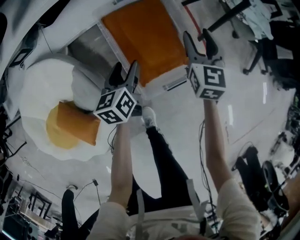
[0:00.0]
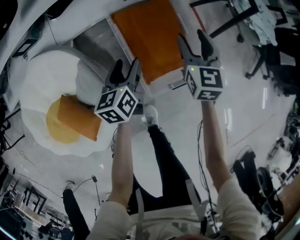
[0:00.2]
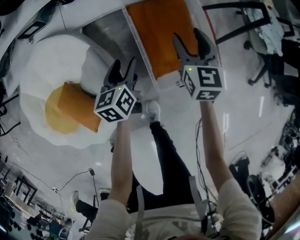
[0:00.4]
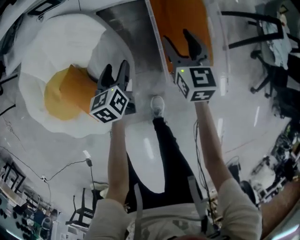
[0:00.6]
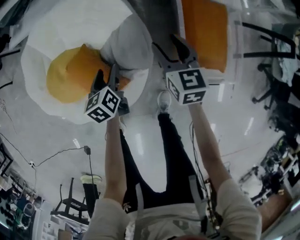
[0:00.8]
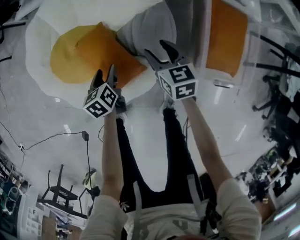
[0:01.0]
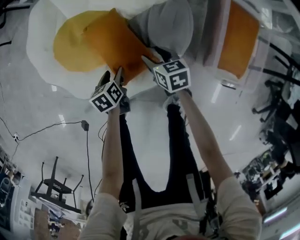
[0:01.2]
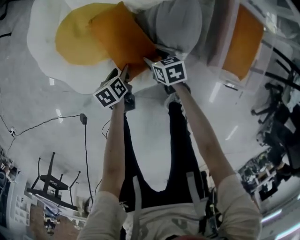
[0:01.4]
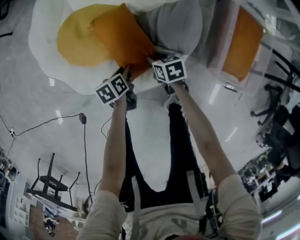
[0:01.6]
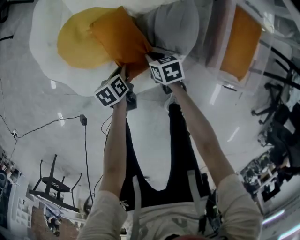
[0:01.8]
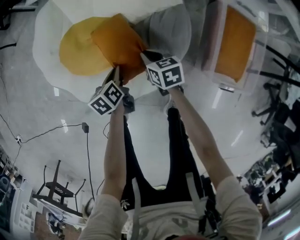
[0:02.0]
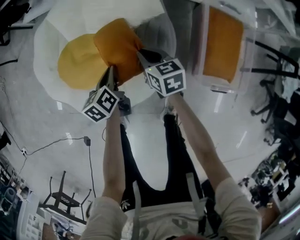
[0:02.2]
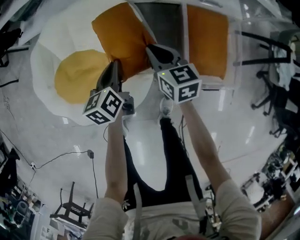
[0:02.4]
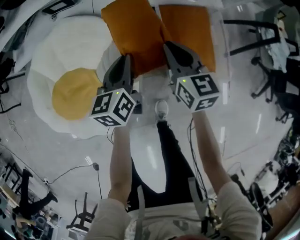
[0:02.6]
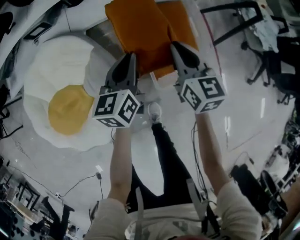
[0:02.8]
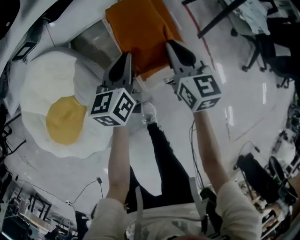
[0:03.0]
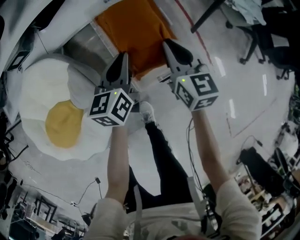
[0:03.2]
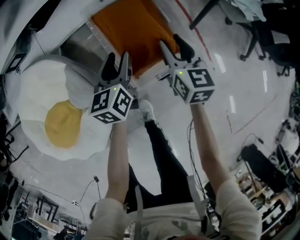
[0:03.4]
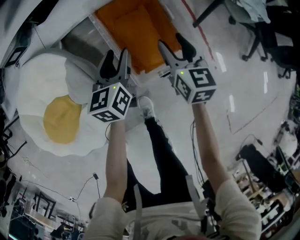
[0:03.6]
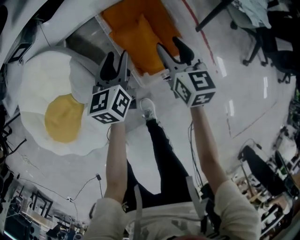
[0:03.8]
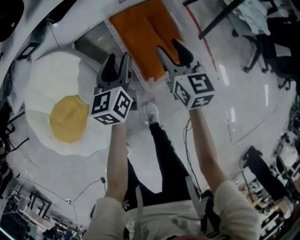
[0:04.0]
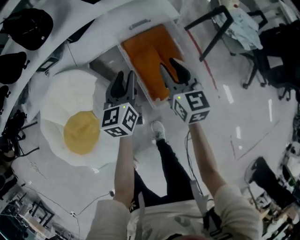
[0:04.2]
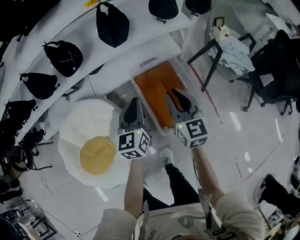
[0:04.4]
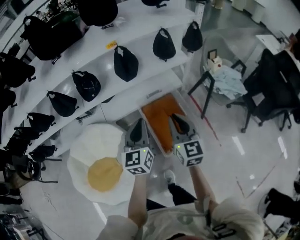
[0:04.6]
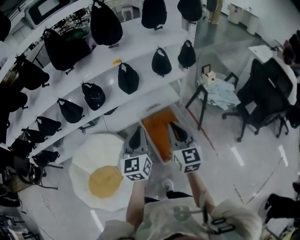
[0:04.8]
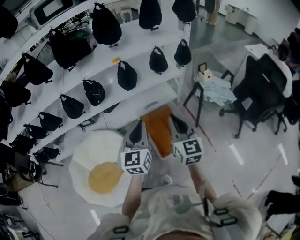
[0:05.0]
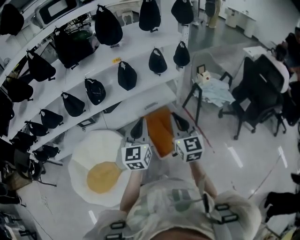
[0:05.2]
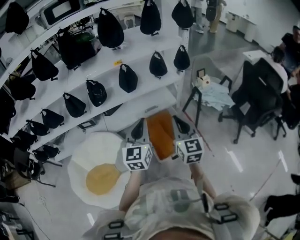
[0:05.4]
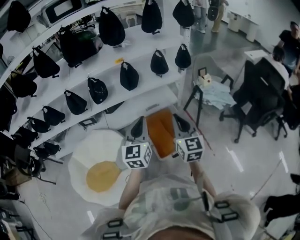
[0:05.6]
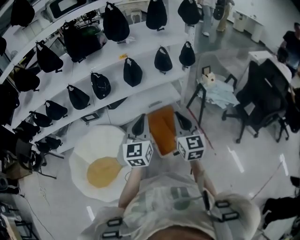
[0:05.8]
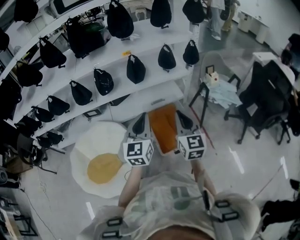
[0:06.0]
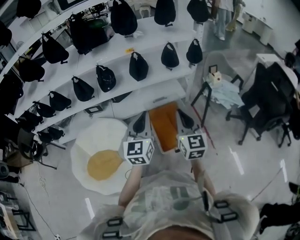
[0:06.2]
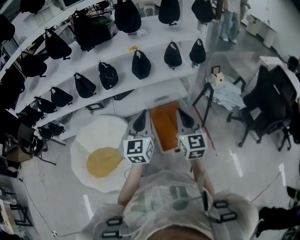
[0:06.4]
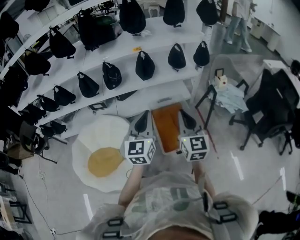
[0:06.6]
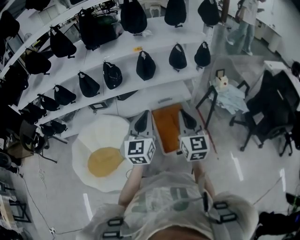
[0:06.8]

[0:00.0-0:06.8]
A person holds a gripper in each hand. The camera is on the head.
0:00.0 to 0:01.4: The pair of grippers is taken roughly 60 cm. The right gripper angles its fingers downward, by roughly 30 degrees; the left gripper changes its angle by about 50 degrees.
0:01.4 to 0:02.8: Both grippers are carried roughly 50 cm. The right gripper points its fingers roughly 40 degrees further upward, and closes its fingers; the left gripper tilts its fingers some 40 degrees upward, and closes its fingers.
0:02.8 to 0:04.0: The two grippers go roughly 5 cm to the right. The right gripper opens. Meanwhile the left gripper opens.
0:04.0 to 0:05.4: The right gripper travels upward and backward by about 40 cm, rotates about 30 degrees, and closes up, while the left gripper goes about 40 cm upward, turns by about 30 degrees, and closes up.
0:05.4 to 0:06.8: There are only small adjustments of the grippers.

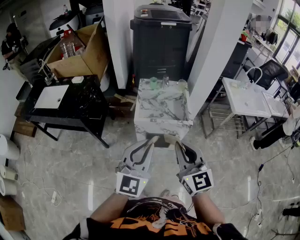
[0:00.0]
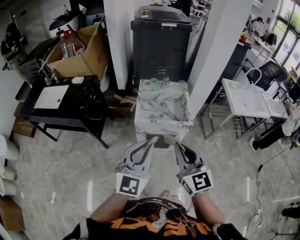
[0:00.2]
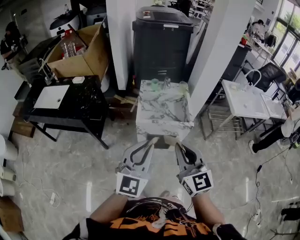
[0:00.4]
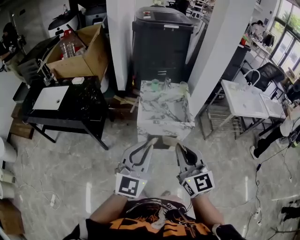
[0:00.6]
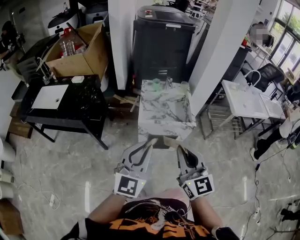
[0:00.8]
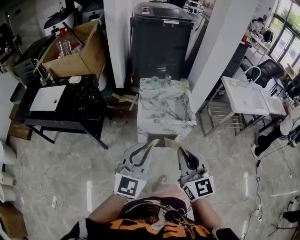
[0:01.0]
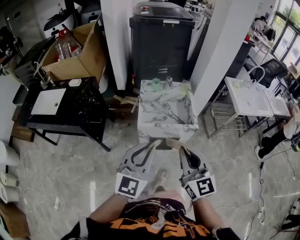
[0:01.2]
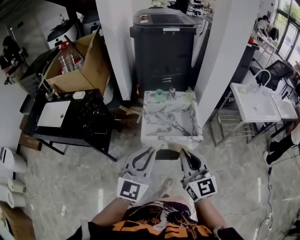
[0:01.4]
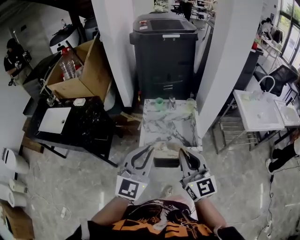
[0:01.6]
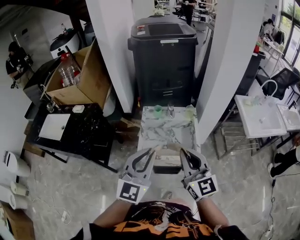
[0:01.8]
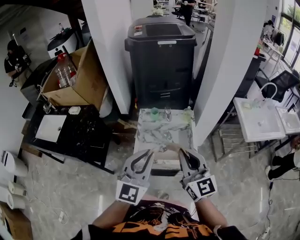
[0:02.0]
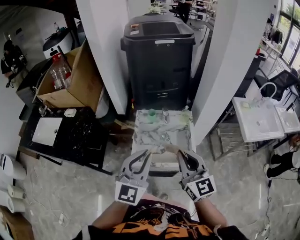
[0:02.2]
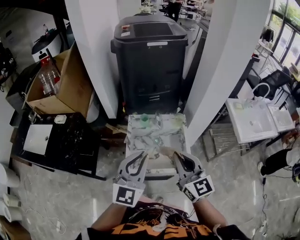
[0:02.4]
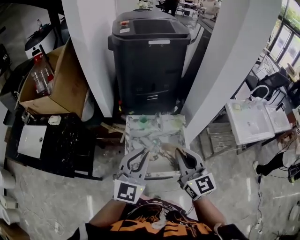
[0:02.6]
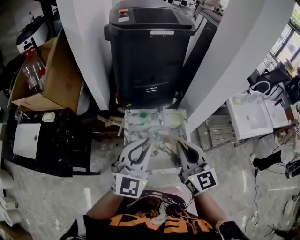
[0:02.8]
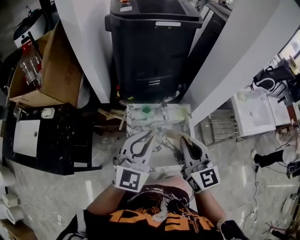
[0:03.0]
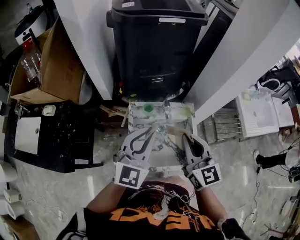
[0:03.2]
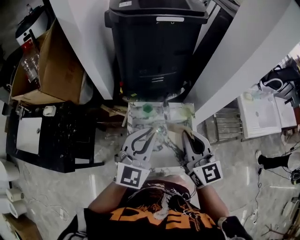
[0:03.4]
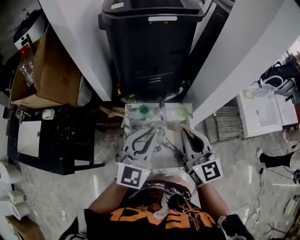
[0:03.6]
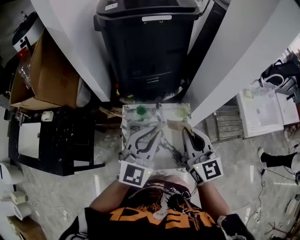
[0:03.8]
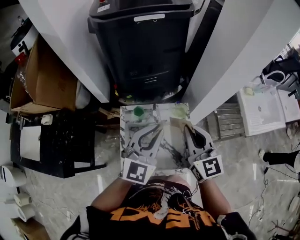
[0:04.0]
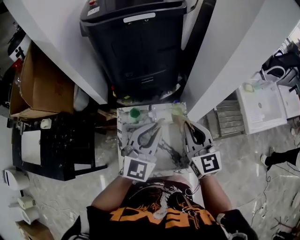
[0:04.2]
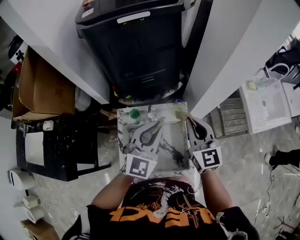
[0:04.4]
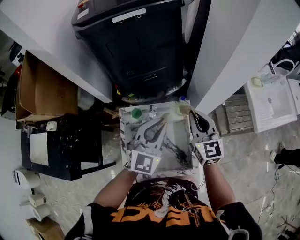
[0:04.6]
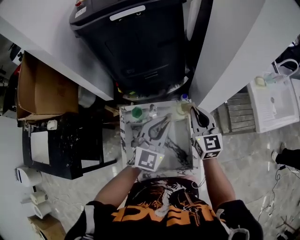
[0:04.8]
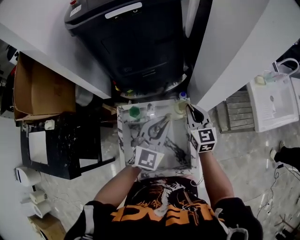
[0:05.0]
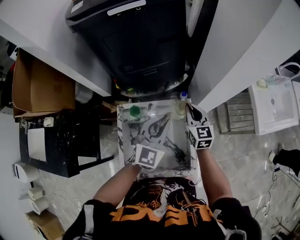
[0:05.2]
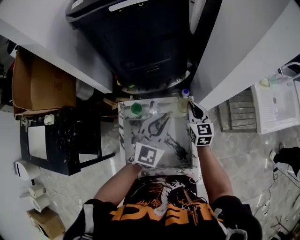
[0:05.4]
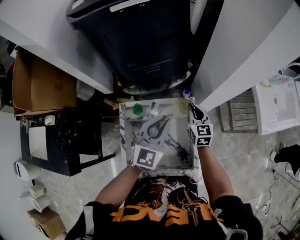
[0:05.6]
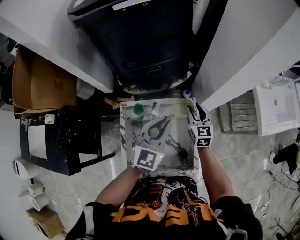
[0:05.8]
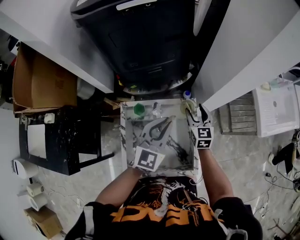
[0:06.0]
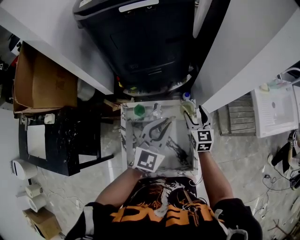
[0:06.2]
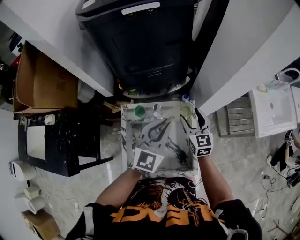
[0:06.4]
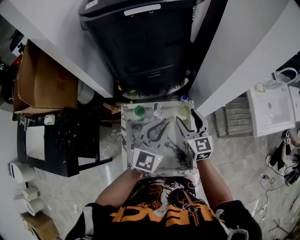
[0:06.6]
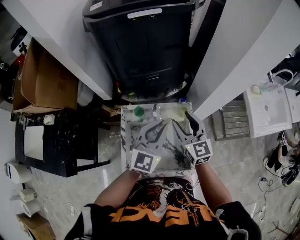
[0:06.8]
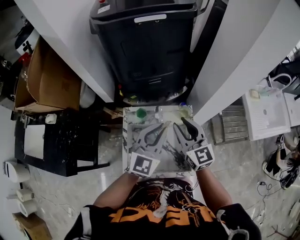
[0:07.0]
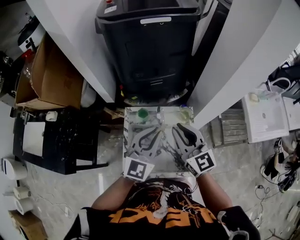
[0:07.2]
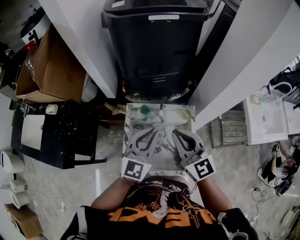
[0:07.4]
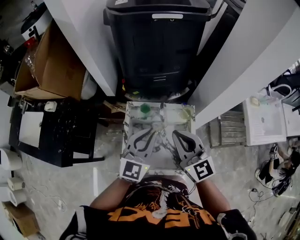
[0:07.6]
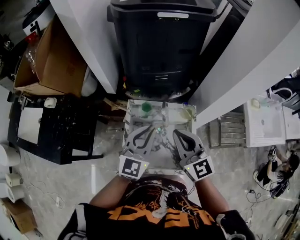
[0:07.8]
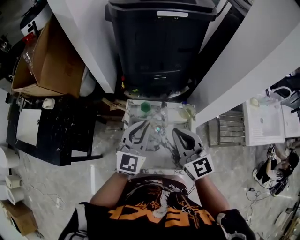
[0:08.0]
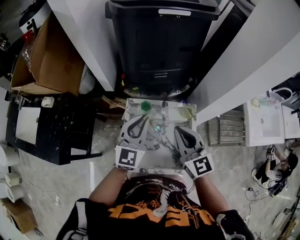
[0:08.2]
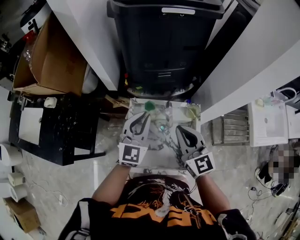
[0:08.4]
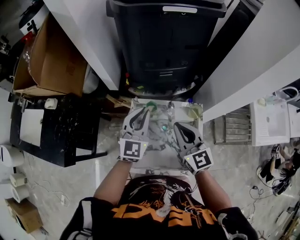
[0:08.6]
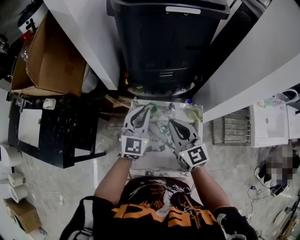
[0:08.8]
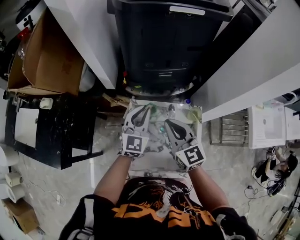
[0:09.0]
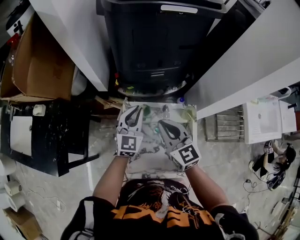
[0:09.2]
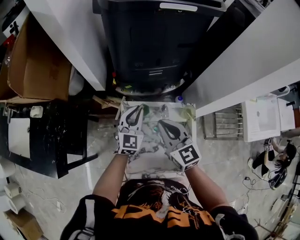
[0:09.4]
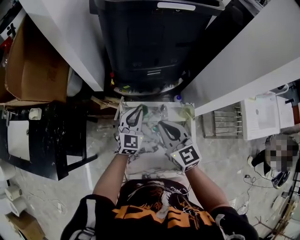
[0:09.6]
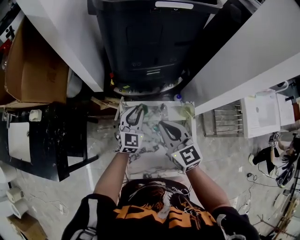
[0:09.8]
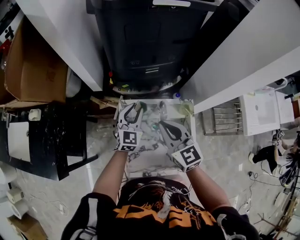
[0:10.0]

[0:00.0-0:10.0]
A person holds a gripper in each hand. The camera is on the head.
0:00.0 to 0:01.4: The two grippers go some 10 cm forward.
0:01.4 to 0:02.8: Both grippers travel together forward, about 30 cm.
0:02.8 to 0:04.2: The right gripper goes roughly 20 cm forward and to the right; the left gripper is displaced forward, to the right and downward by about 20 cm.
0:04.2 to 0:05.8: The left gripper moves downward and forward, approximately 10 cm; the right gripper moves downward and forward, about 25 cm, turns by about 20 degrees, and opens its fingers.
0:05.8 to 0:07.2: The left gripper shifts some 15 cm backward, upward and to the left; the right gripper heads upward, backward and to the left, covering approximately 30 cm, changes its angle by about 30 degrees, and opens, then closes once more.
0:07.2 to 0:08.6: The right gripper travels downward by roughly 5 cm. Meanwhile the left gripper moves forward, to the left and downward, about 15 cm.
0:08.6 to 0:10.0: The right gripper moves roughly 5 cm, while the left gripper moves downward and forward, some 15 cm.

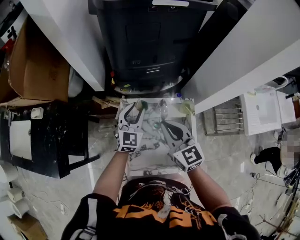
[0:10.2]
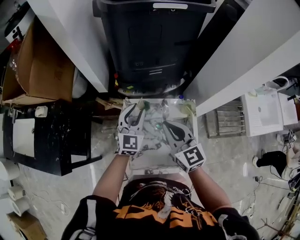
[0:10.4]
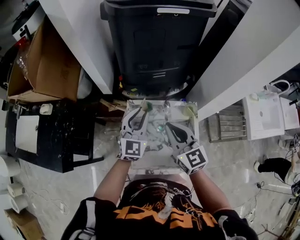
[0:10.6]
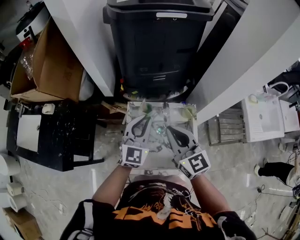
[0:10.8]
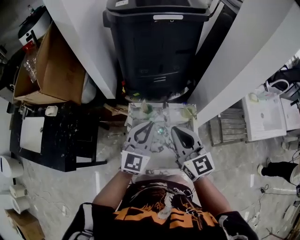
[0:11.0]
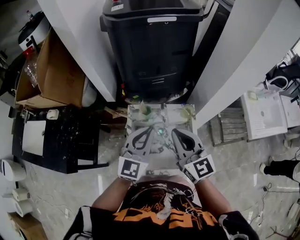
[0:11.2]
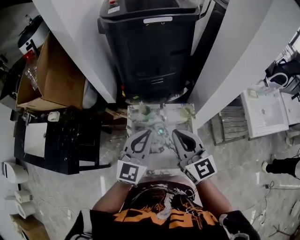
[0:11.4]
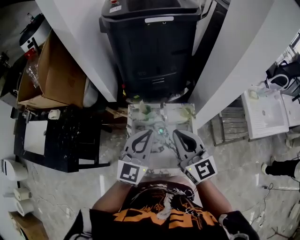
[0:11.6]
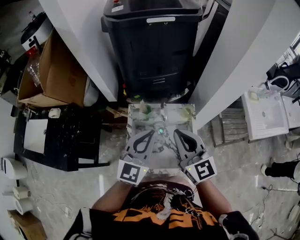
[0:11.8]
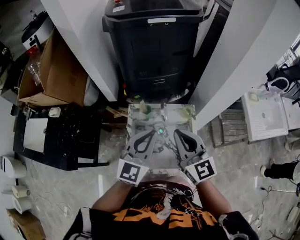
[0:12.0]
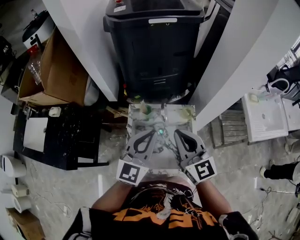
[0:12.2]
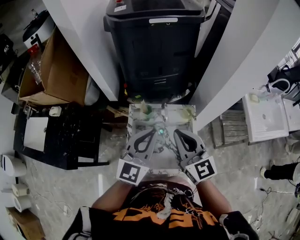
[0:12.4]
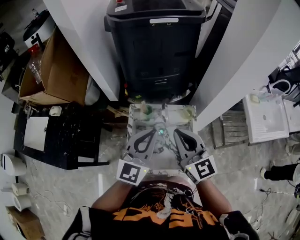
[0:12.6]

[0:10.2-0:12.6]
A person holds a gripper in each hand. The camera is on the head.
0:10.2 to 0:11.4: The right gripper moves backward, upward and to the right, some 15 cm. Meanwhile the left gripper moves backward and upward, about 25 cm, and closes up.
0:11.4 to 0:12.6: There are only small adjustments of the grippers.

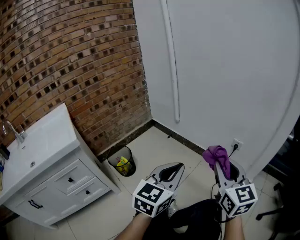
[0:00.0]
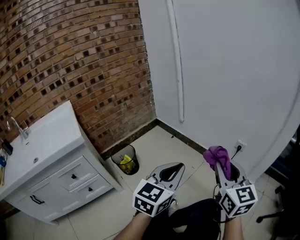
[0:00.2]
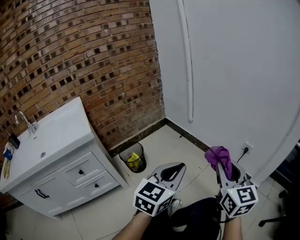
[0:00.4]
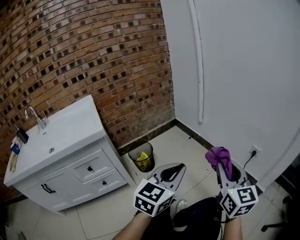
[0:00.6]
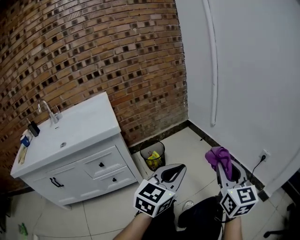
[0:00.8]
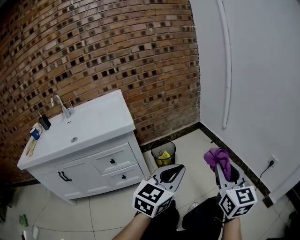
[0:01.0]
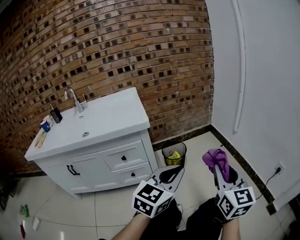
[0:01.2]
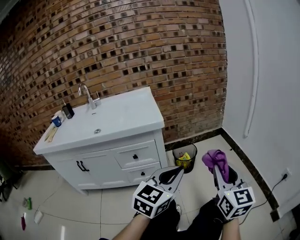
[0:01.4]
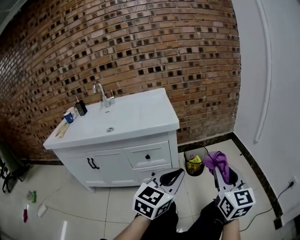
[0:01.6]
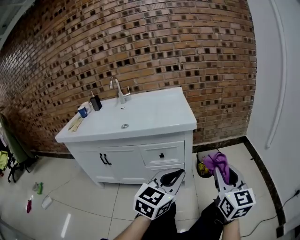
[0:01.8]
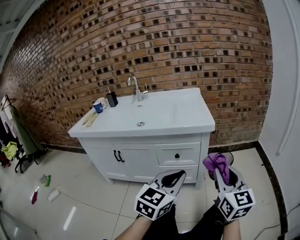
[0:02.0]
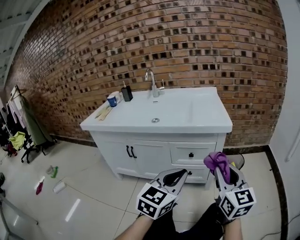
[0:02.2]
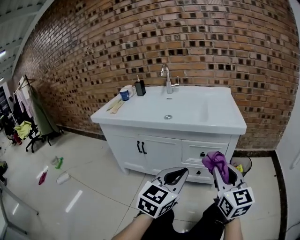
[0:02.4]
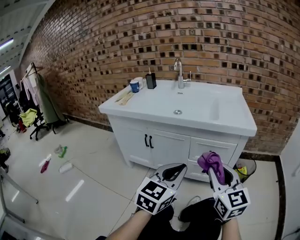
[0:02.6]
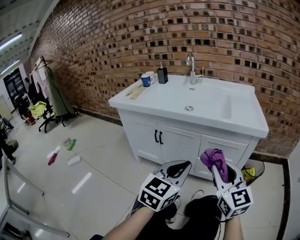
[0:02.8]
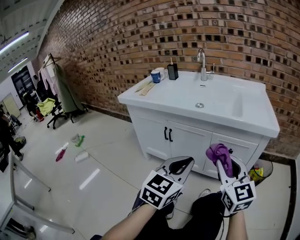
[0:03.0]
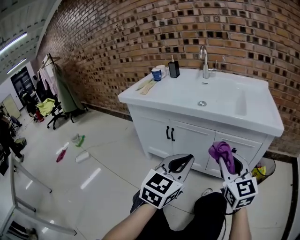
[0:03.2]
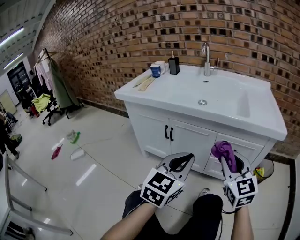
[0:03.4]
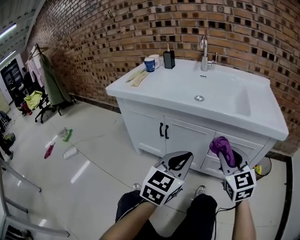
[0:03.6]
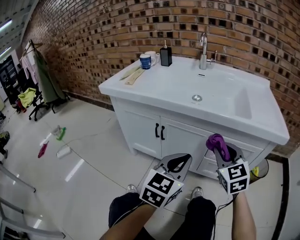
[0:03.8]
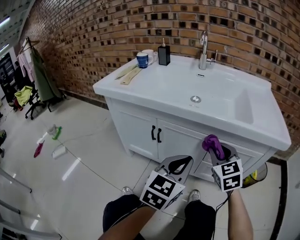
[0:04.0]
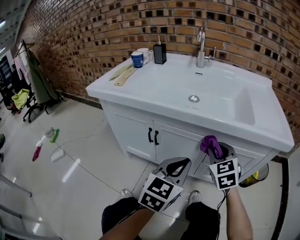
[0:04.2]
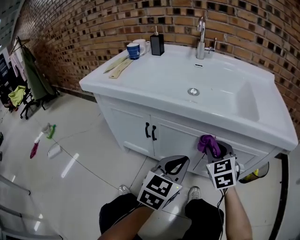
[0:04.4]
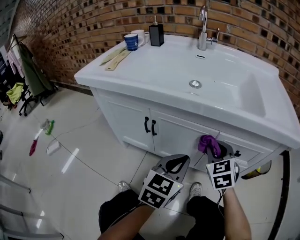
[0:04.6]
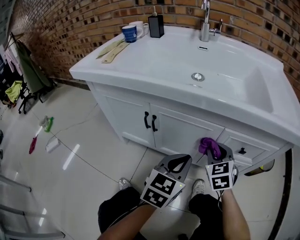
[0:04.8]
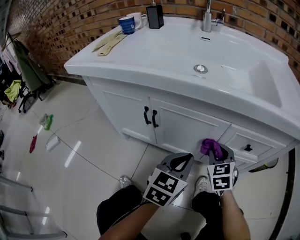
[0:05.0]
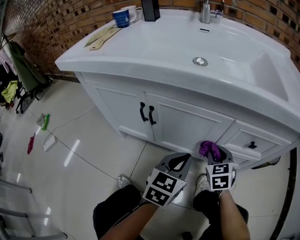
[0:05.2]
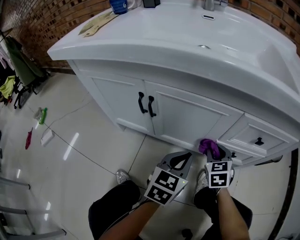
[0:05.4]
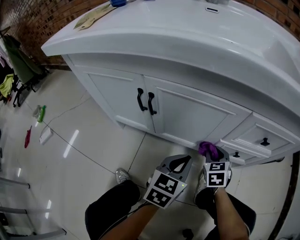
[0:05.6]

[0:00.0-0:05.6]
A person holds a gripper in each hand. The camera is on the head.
0:00.0 to 0:01.4: The right gripper moves approximately 25 cm, and turns by about 30 degrees; the left gripper shifts by roughly 30 cm, and changes its angle by approximately 30 degrees.
0:01.4 to 0:02.8: The left gripper changes place by about 35 cm, and rotates roughly 30 degrees; the right gripper shifts by roughly 40 cm, and rotates about 40 degrees.
0:02.8 to 0:04.2: The left gripper shifts approximately 20 cm forward, downward and to the left. Meanwhile the right gripper is displaced forward and downward by some 30 cm, and rotates some 30 degrees.
0:04.2 to 0:05.6: The grippers both shift downward by about 30 cm. The right gripper swivels about 20 degrees.
